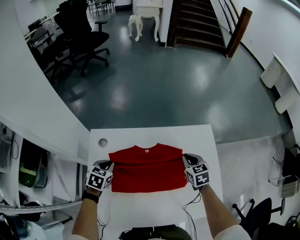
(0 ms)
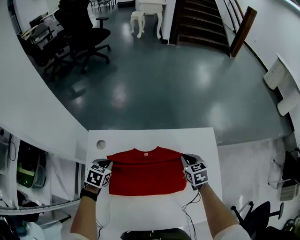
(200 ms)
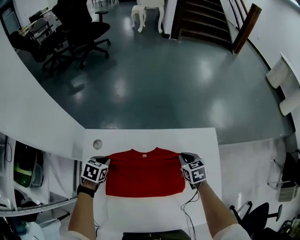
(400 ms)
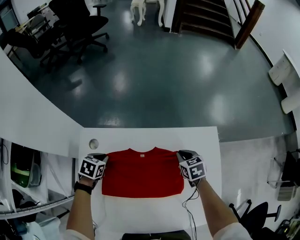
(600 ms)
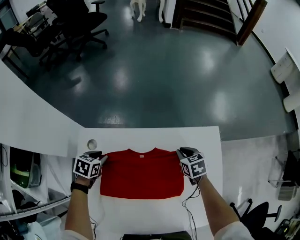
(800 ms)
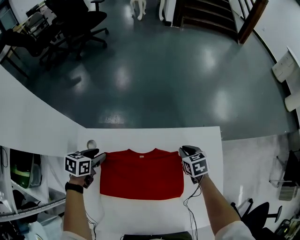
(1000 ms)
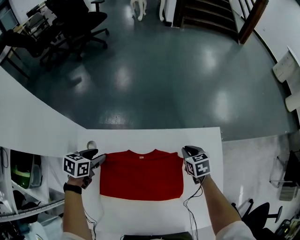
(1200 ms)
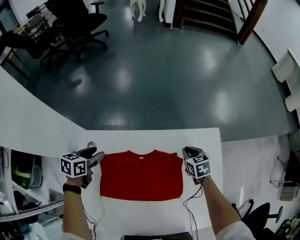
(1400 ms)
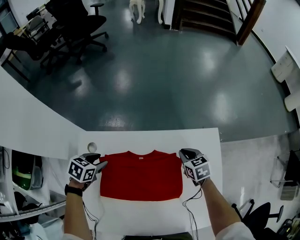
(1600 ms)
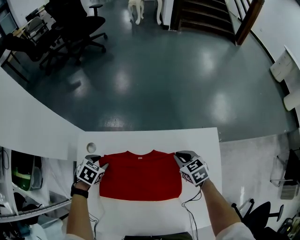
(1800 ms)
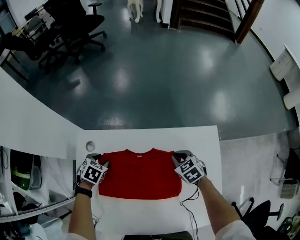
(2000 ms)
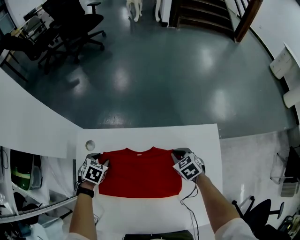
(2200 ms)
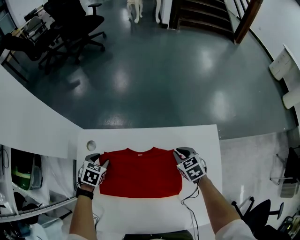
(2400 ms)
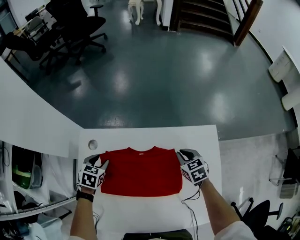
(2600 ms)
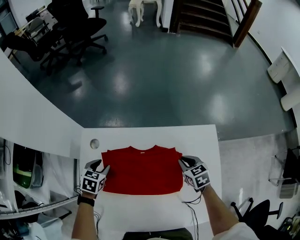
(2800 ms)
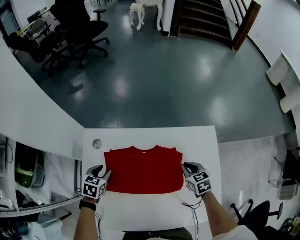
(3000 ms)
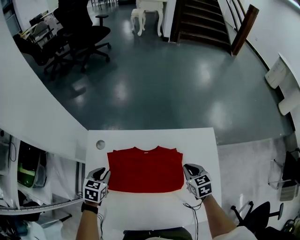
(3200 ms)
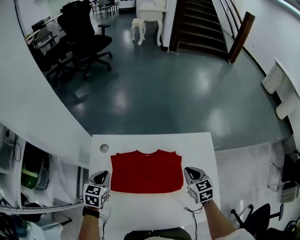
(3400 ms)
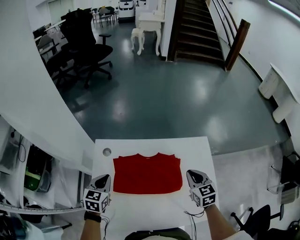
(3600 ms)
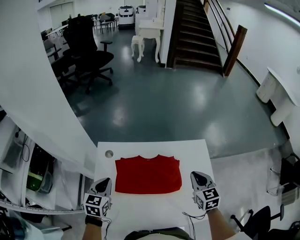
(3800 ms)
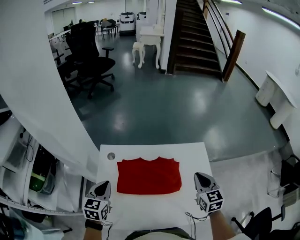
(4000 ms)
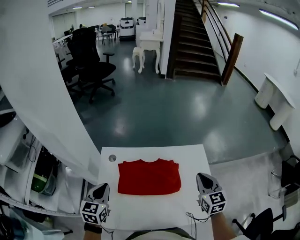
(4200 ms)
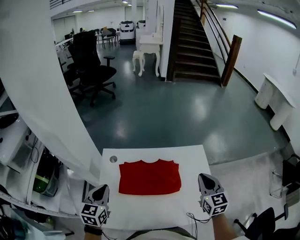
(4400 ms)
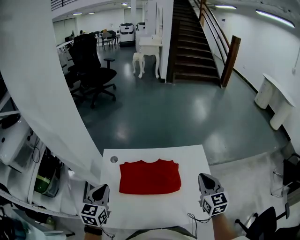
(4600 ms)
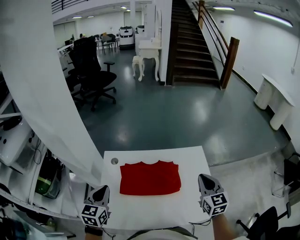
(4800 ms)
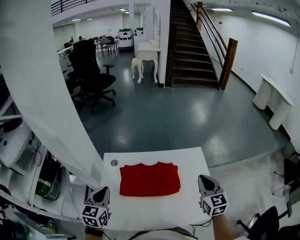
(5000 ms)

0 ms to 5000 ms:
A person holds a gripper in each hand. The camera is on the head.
0 ms to 1600 ms: The left gripper shifts about 10 cm forward, and opens up. Meanwhile the right gripper goes approximately 10 cm forward and downward.
1600 ms to 3400 ms: The grippers both shift backward and upward by about 15 cm. The left gripper turns by about 30 degrees, and closes.
3400 ms to 5000 ms: The two grippers go approximately 25 cm upward and backward. The left gripper changes its angle by roughly 20 degrees, while the right gripper turns by about 30 degrees.

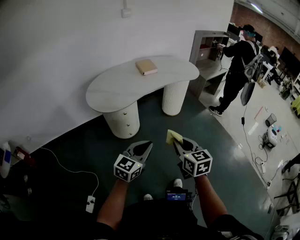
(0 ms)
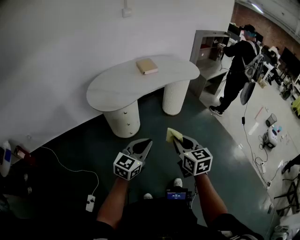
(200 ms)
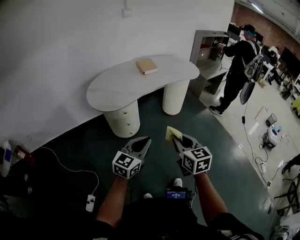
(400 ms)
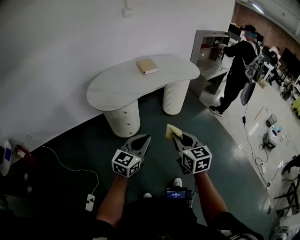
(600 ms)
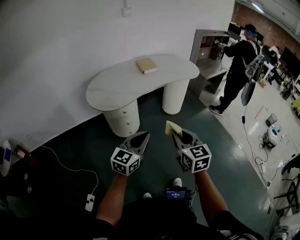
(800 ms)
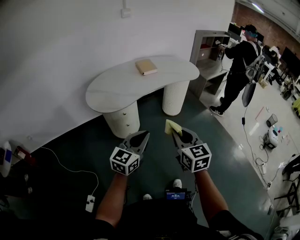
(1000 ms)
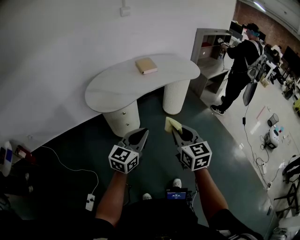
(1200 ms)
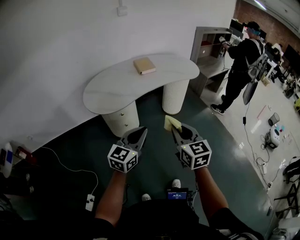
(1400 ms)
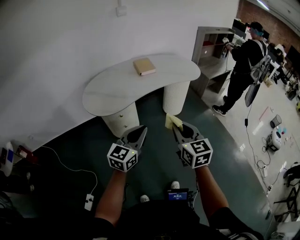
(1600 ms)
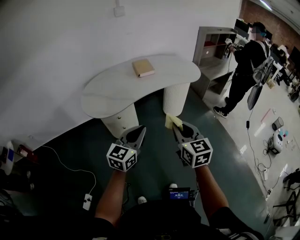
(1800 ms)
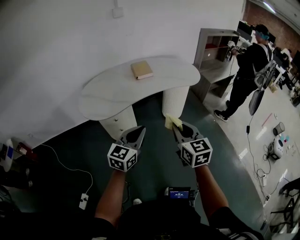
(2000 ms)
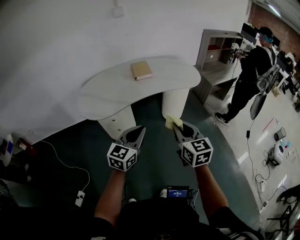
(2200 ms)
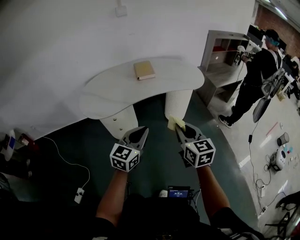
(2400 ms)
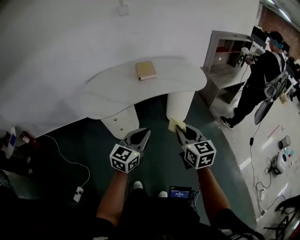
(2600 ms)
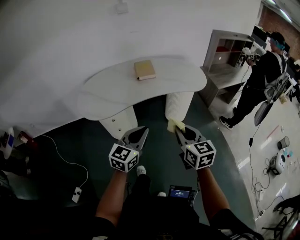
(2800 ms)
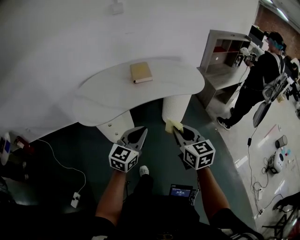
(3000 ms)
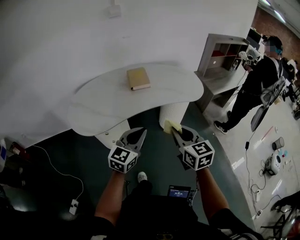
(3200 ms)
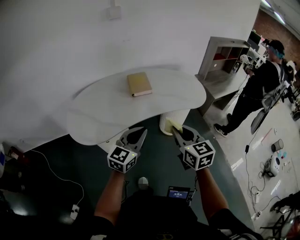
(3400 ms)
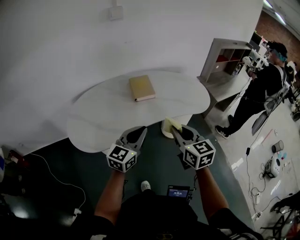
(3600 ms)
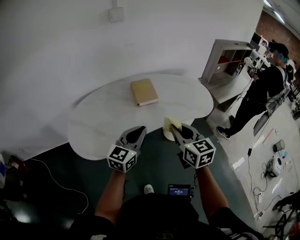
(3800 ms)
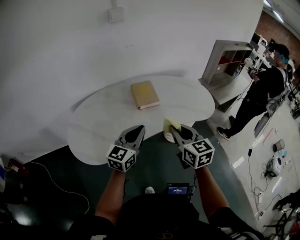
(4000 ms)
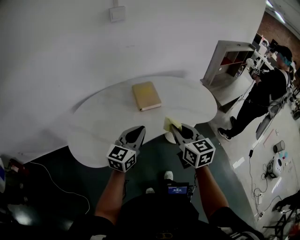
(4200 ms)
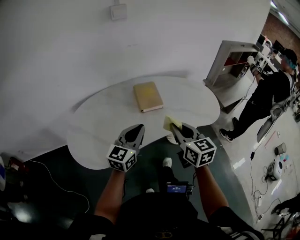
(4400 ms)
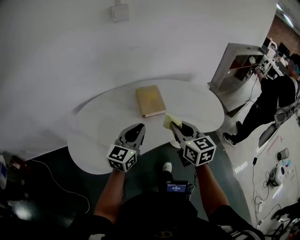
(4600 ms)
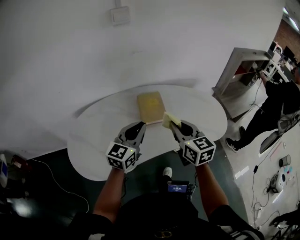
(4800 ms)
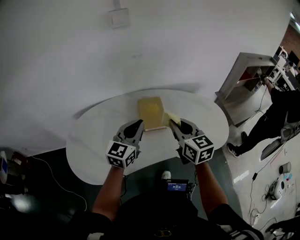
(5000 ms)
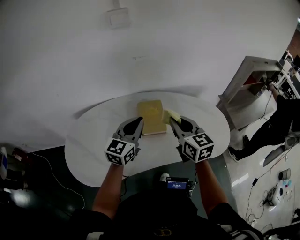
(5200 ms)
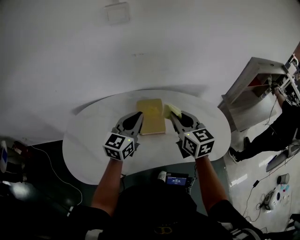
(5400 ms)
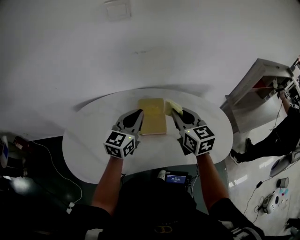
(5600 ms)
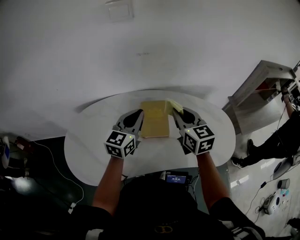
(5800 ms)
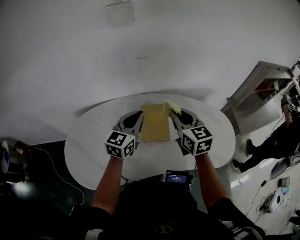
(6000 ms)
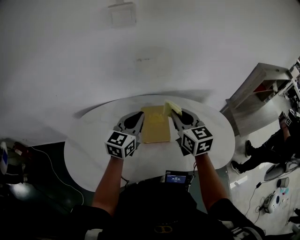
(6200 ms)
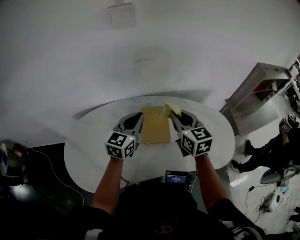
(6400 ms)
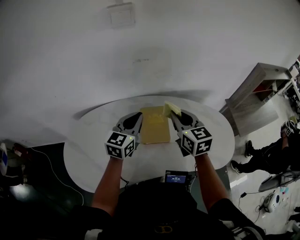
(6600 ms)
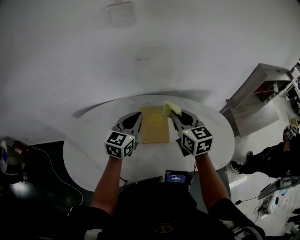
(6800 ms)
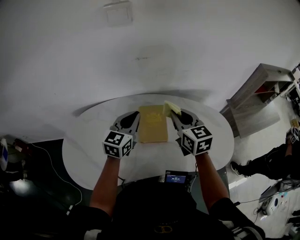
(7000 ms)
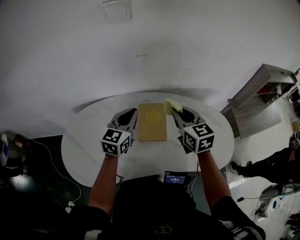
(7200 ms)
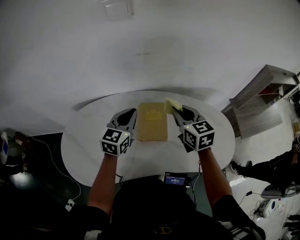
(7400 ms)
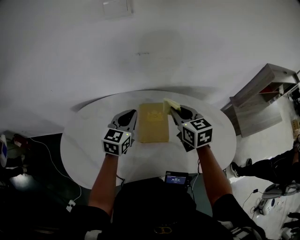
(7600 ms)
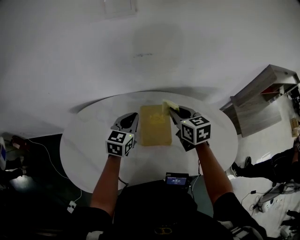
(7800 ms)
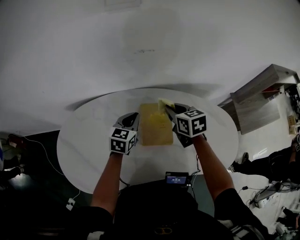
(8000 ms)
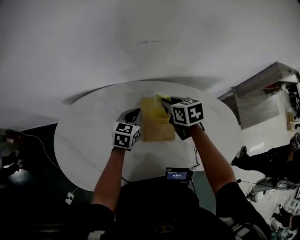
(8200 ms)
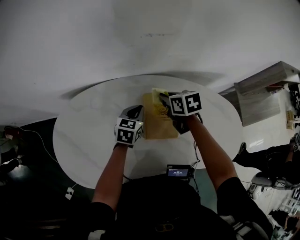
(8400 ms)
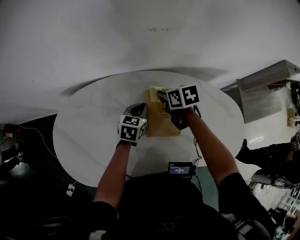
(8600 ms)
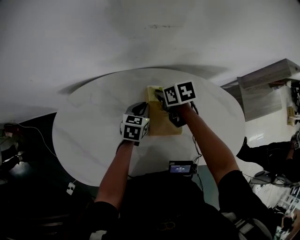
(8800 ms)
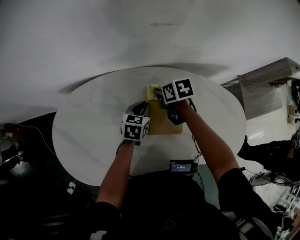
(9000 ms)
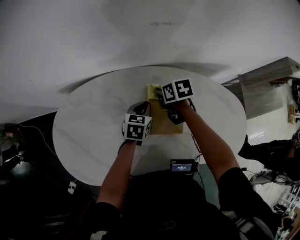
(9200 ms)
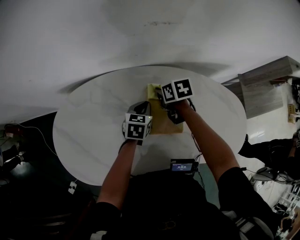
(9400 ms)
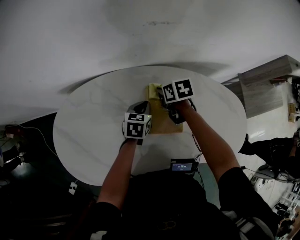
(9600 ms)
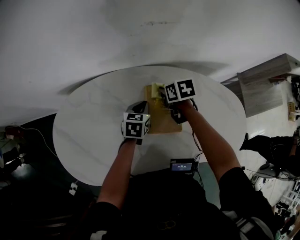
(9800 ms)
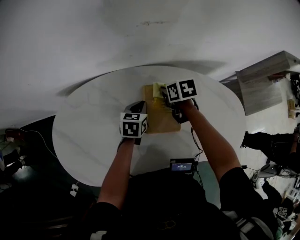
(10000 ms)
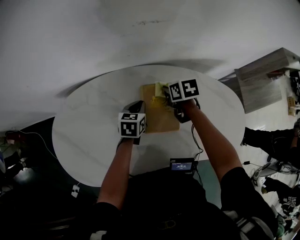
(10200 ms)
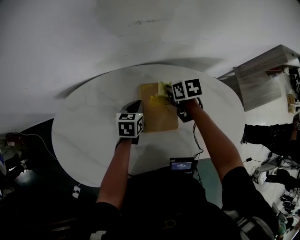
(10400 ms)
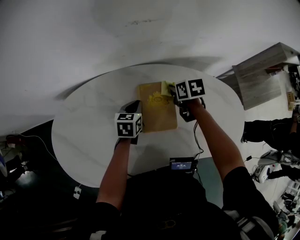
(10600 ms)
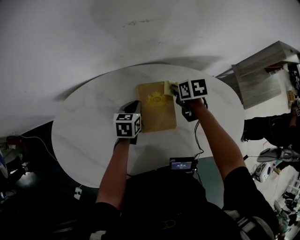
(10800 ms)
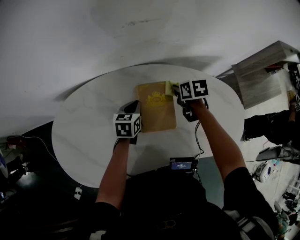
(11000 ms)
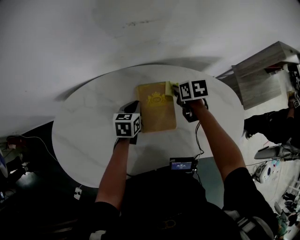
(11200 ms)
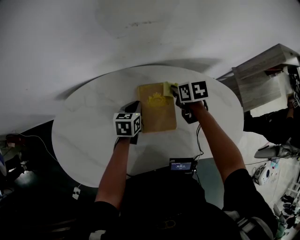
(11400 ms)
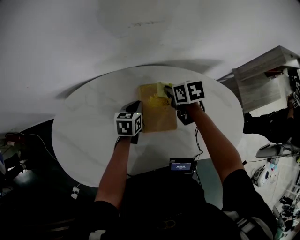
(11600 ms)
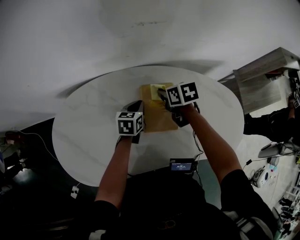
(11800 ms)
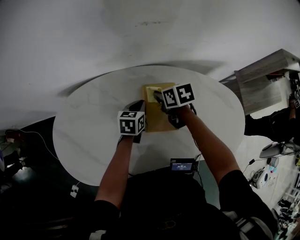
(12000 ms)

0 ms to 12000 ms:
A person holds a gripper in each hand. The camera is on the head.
0 ms to 1600 ms: Both grippers travel together forward and upward, approximately 10 cm.
1600 ms to 3000 ms: The two grippers go roughly 20 cm forward and to the right.
3000 ms to 4400 ms: Both grippers travel together forward and to the left, about 30 cm.
4400 ms to 6000 ms: The grippers both shift forward by approximately 30 cm.
6000 ms to 7600 ms: The right gripper moves forward and downward, approximately 5 cm. Meanwhile the left gripper is displaced downward by some 5 cm.
7600 ms to 9000 ms: The right gripper moves downward, to the left and forward, approximately 25 cm, and swivels roughly 40 degrees. The left gripper goes roughly 20 cm downward, and turns by some 30 degrees.
9000 ms to 10400 ms: The right gripper heads to the right, covering about 10 cm.
10400 ms to 12000 ms: The right gripper heads to the left, covering some 5 cm.

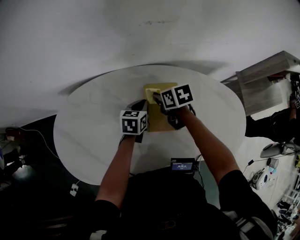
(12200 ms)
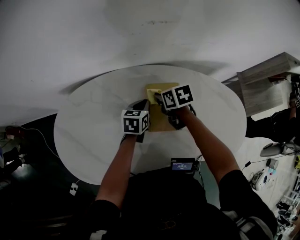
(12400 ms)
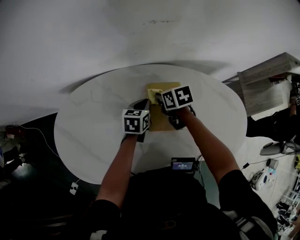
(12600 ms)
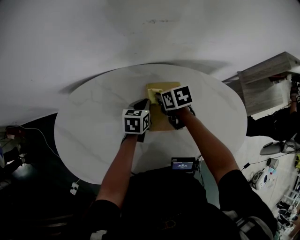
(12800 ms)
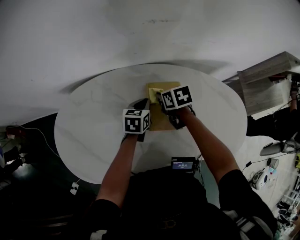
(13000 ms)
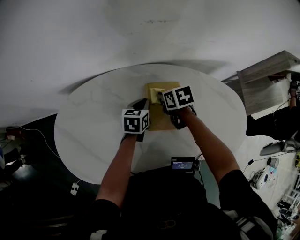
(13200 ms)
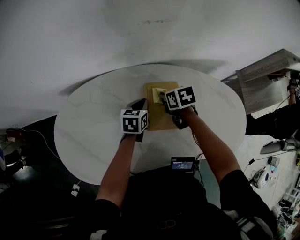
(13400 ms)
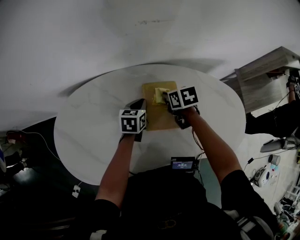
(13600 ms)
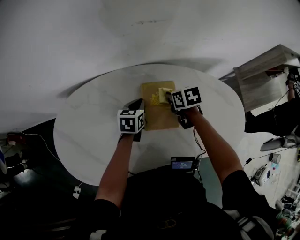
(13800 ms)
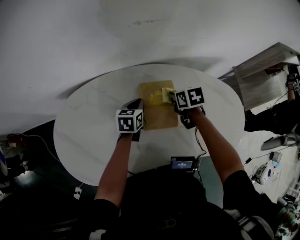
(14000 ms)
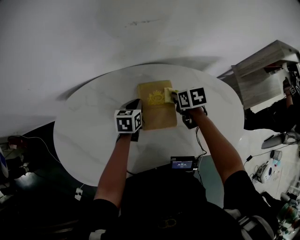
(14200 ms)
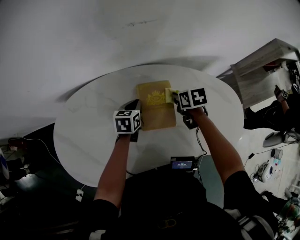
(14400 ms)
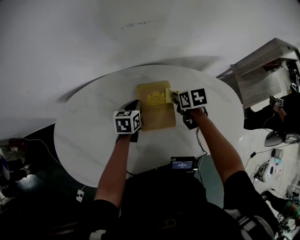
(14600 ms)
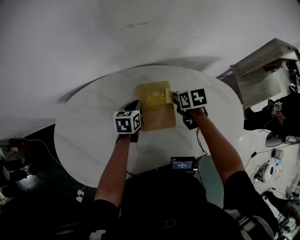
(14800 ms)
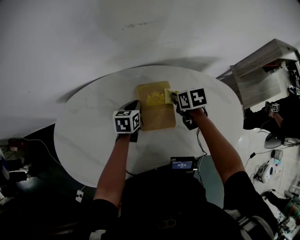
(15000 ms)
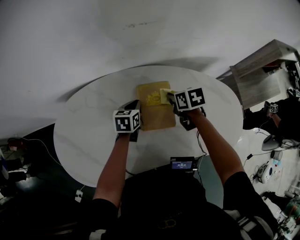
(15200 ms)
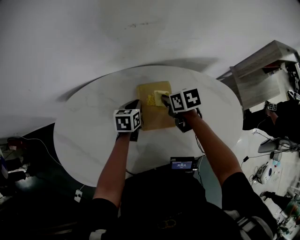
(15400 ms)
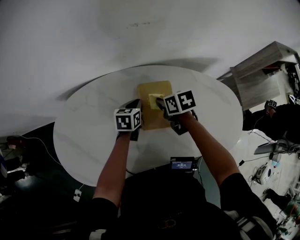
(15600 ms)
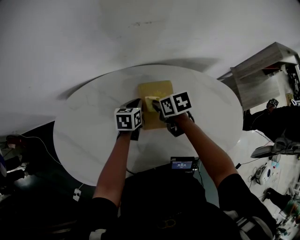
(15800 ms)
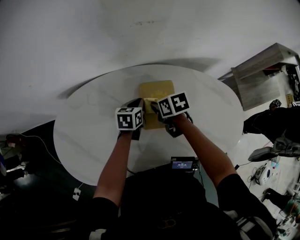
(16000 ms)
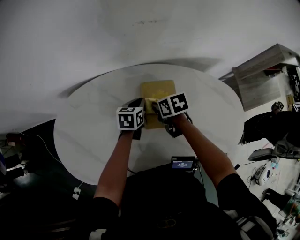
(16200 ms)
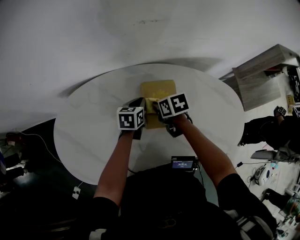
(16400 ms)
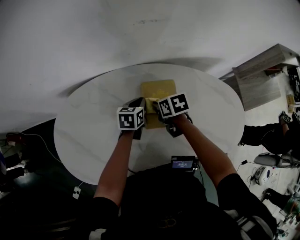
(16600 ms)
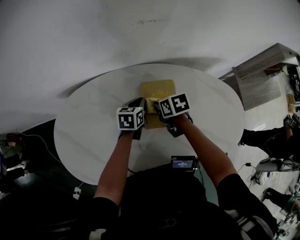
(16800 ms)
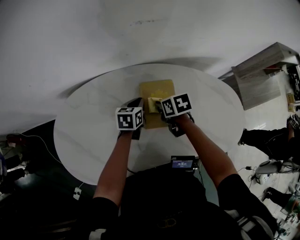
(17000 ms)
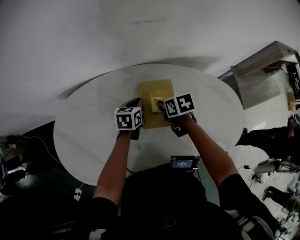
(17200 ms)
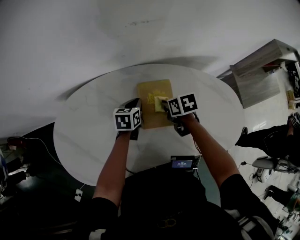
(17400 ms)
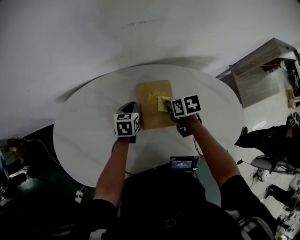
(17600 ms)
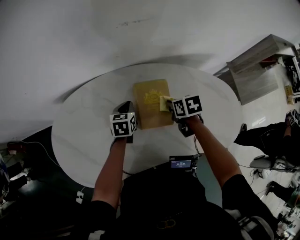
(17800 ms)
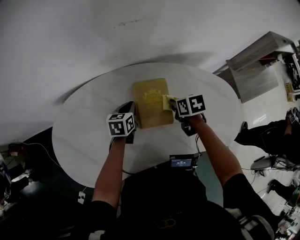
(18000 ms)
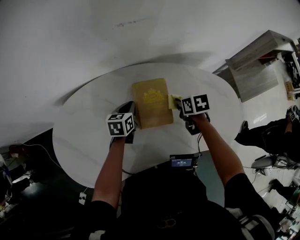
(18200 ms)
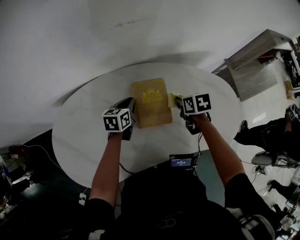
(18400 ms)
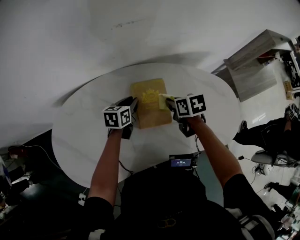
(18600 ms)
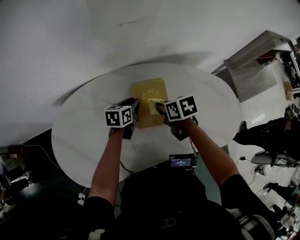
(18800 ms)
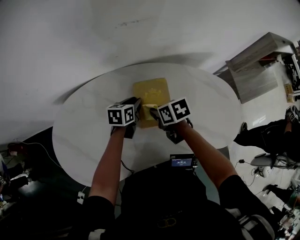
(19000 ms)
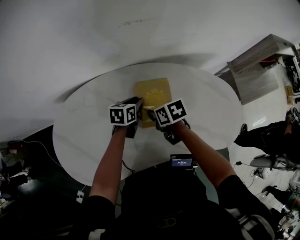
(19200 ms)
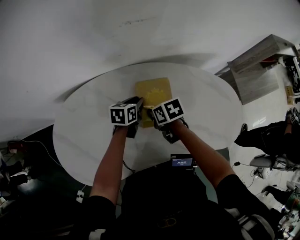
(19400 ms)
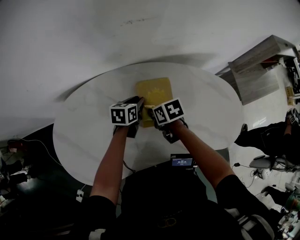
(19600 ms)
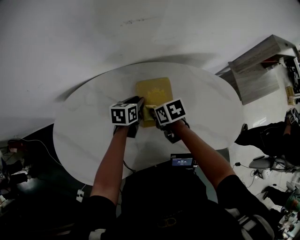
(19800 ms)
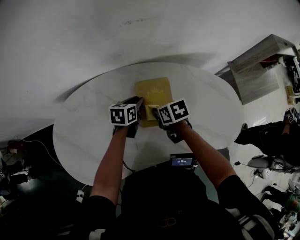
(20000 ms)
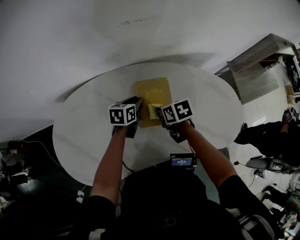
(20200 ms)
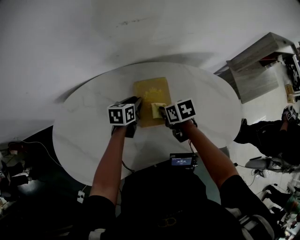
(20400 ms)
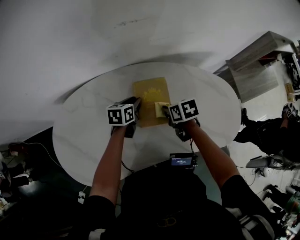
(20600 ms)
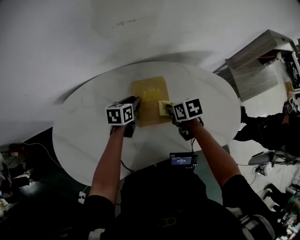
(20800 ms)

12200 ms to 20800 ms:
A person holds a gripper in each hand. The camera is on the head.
12200 ms to 13600 ms: The right gripper goes roughly 5 cm to the right.
13600 ms to 15000 ms: The right gripper shifts some 5 cm to the right.
15000 ms to 16600 ms: The right gripper shifts roughly 10 cm to the left.
16600 ms to 18000 ms: The right gripper goes approximately 10 cm to the right.
18000 ms to 19400 ms: The left gripper opens up, while the right gripper travels to the left by some 10 cm.
19400 ms to 20800 ms: The right gripper is displaced to the right by approximately 10 cm.
